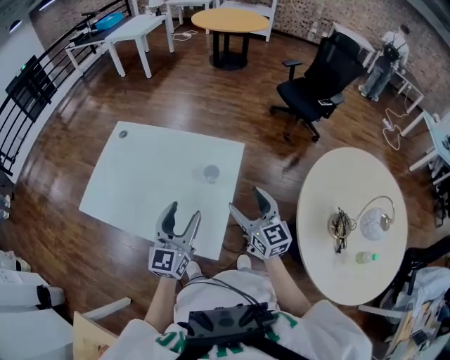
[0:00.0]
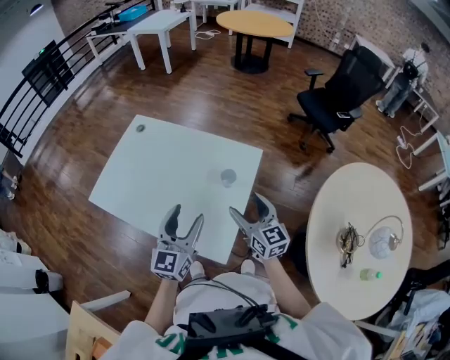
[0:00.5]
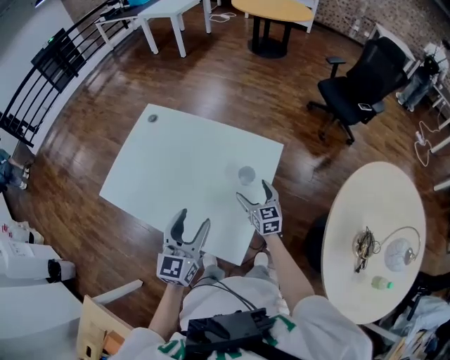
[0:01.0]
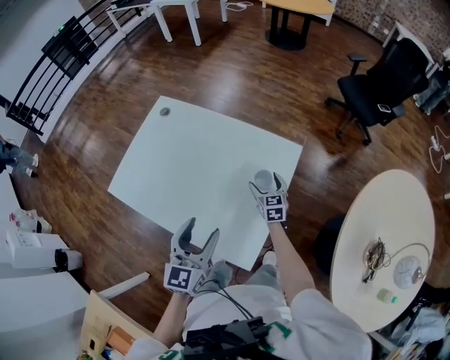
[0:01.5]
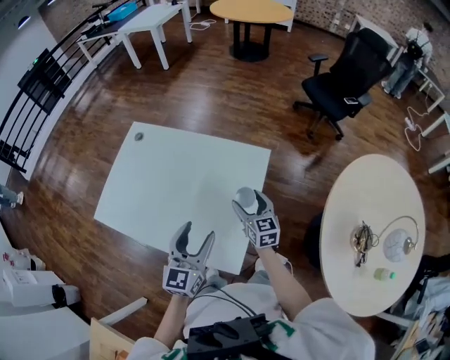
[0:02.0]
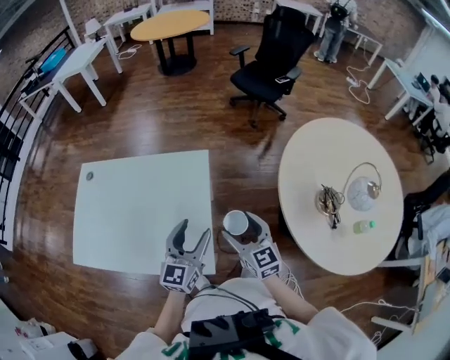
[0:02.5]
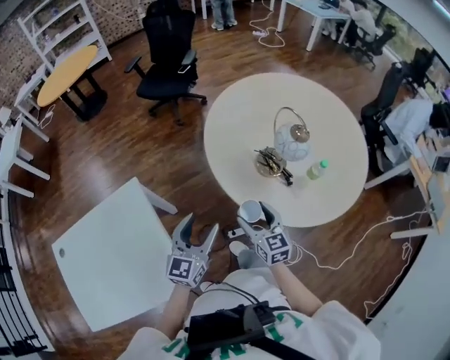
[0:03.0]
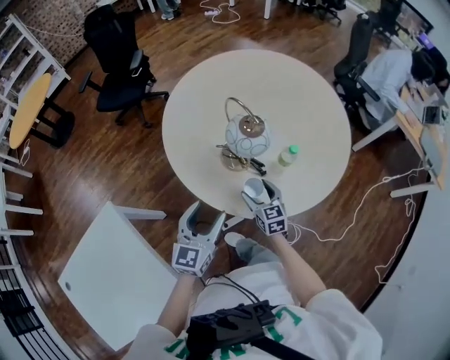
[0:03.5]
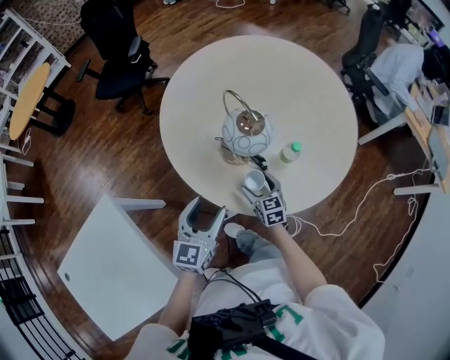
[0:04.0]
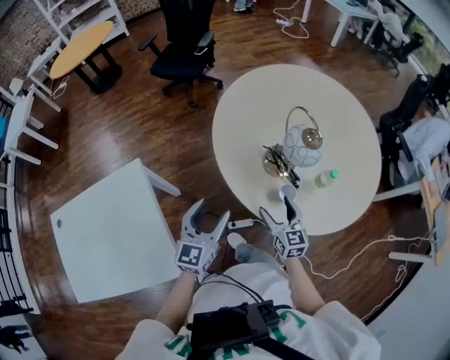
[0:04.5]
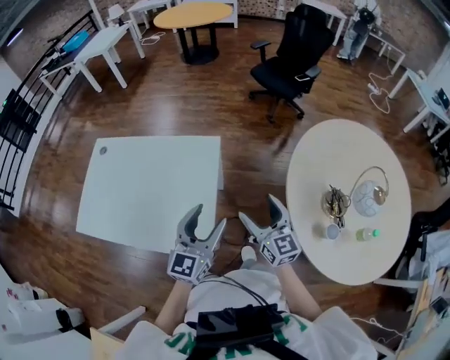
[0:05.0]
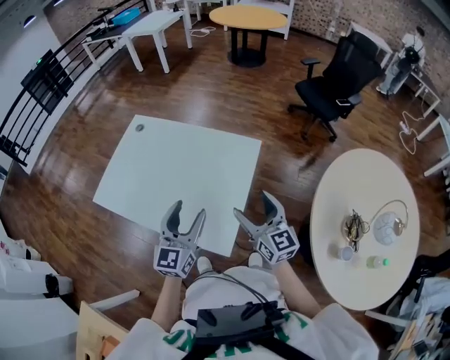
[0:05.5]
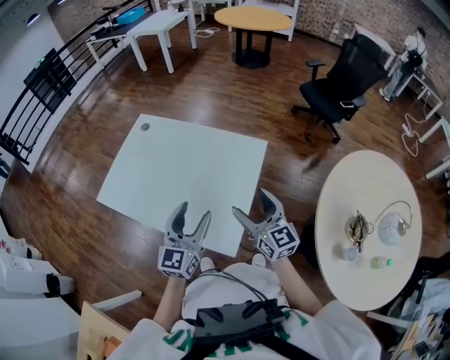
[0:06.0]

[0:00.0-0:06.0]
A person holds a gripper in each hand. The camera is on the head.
0:00.0 to 0:02.0: The right gripper goes approximately 20 cm downward, forward and to the left, while the left gripper changes place by roughly 5 cm.
0:02.0 to 0:04.0: Both grippers are carried about 60 cm. The right gripper turns by about 60 degrees. Meanwhile the left gripper swivels about 60 degrees.
0:04.0 to 0:06.0: The pair of grippers is taken roughly 60 cm. The left gripper rotates roughly 70 degrees. The right gripper rotates about 70 degrees.

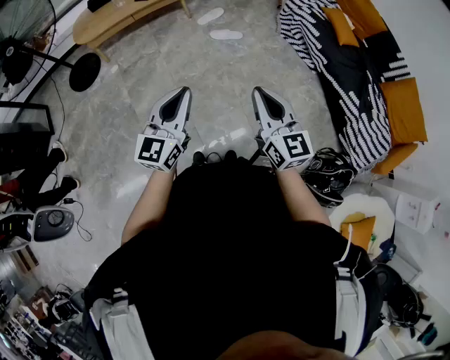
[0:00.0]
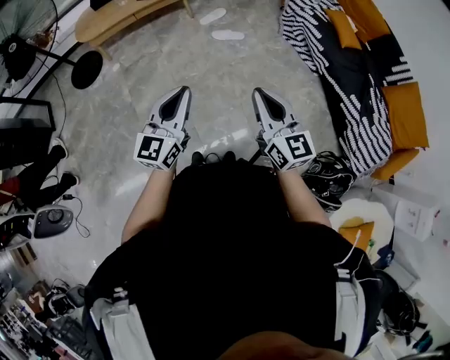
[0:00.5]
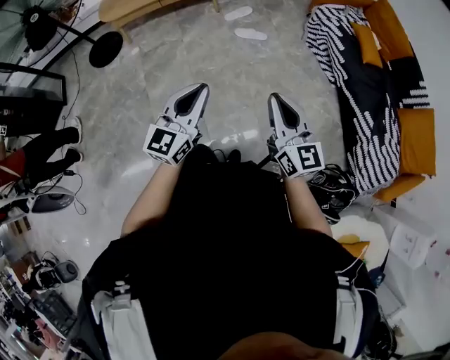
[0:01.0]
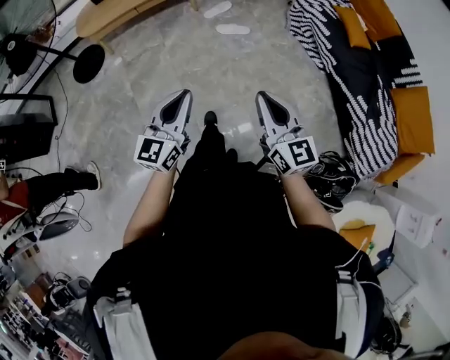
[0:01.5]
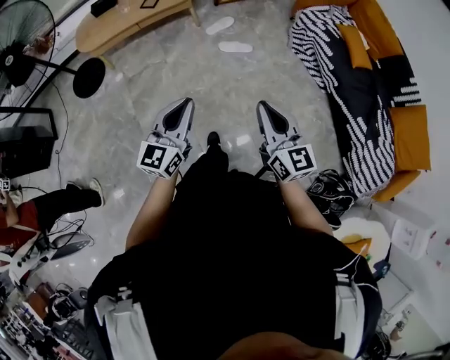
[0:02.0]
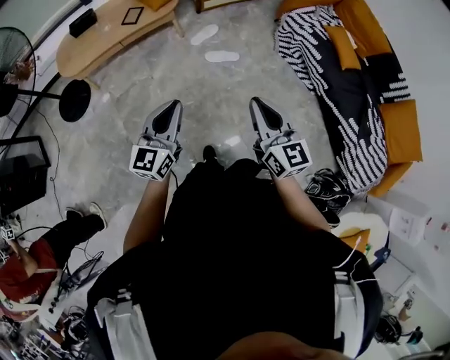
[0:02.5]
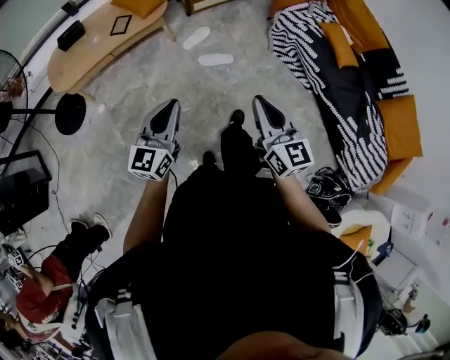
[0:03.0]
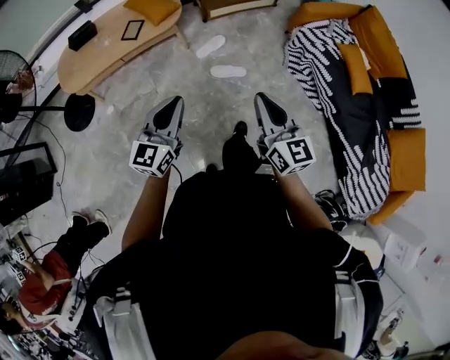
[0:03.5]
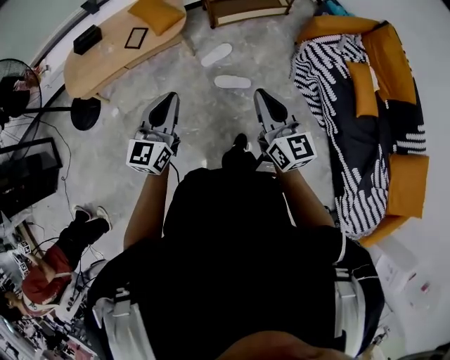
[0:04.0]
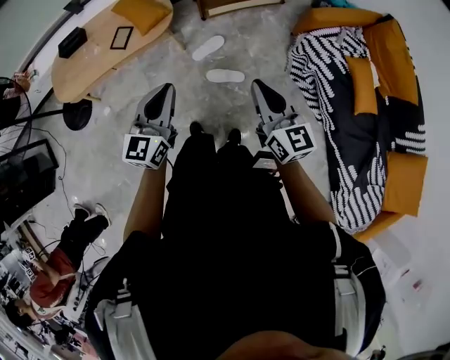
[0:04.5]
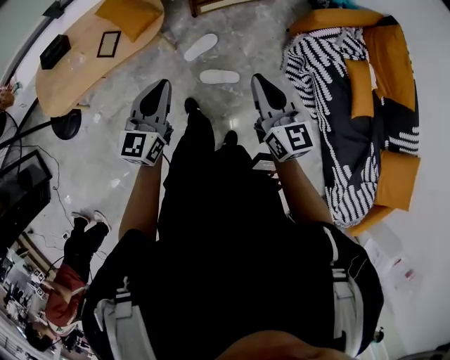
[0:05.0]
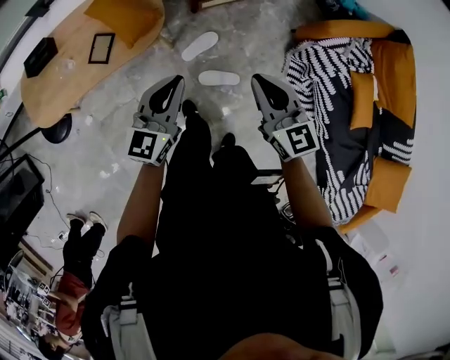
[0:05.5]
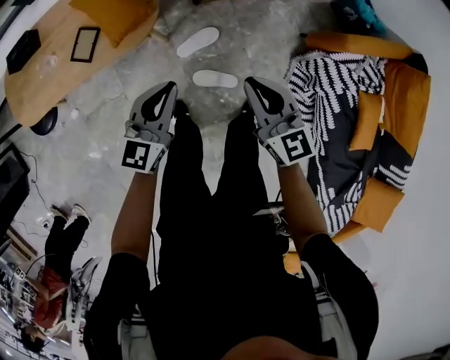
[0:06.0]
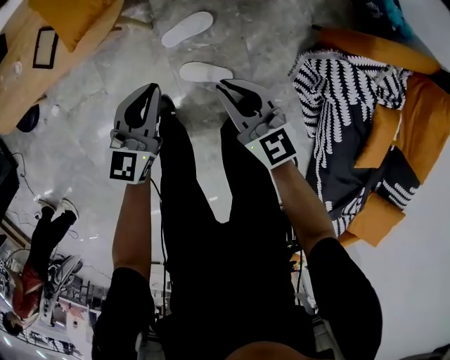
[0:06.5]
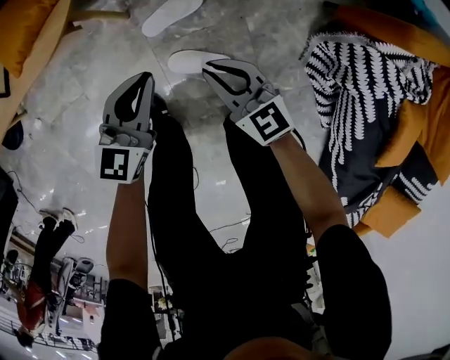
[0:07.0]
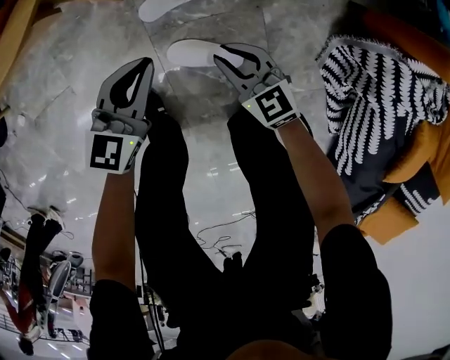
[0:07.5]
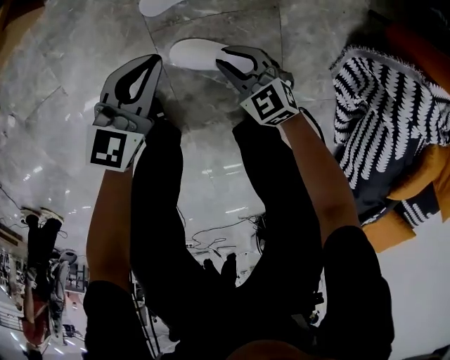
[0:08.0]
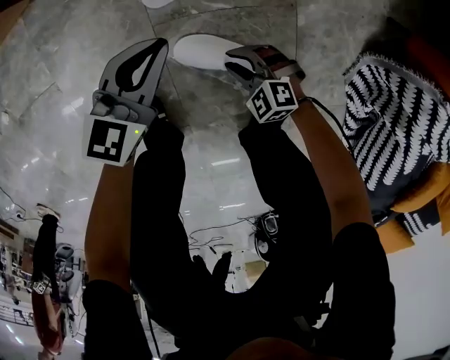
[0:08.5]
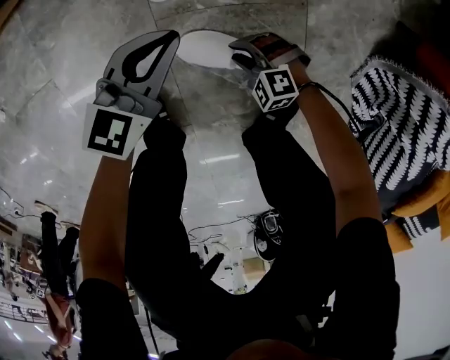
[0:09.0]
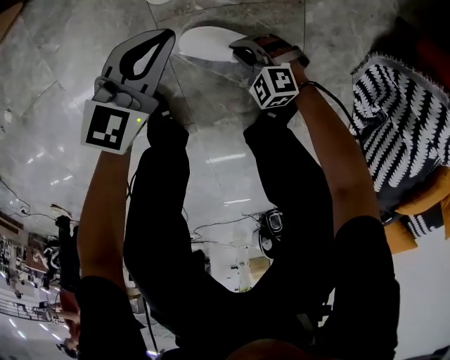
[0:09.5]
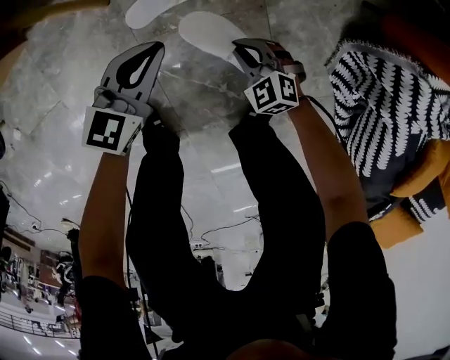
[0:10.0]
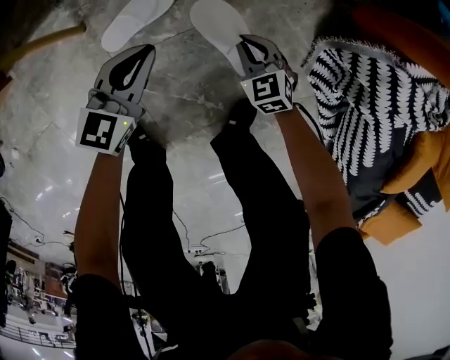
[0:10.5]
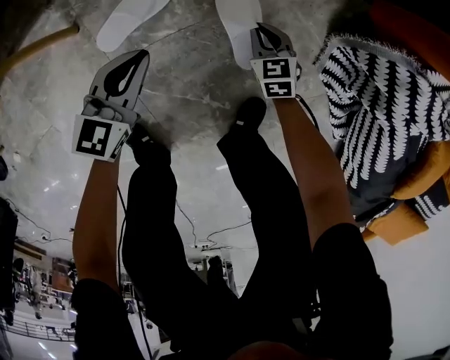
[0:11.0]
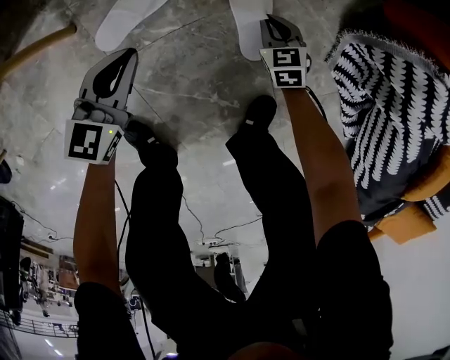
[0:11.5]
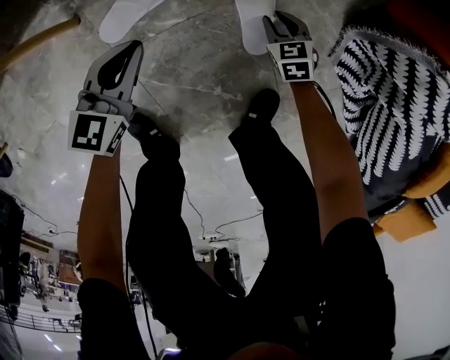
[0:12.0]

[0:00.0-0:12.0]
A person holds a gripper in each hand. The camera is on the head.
0:00.0 to 0:02.0: Both grippers travel together forward, some 10 cm.
0:02.0 to 0:04.0: Both grippers travel together forward, about 40 cm.
0:04.0 to 0:06.0: The two grippers go about 40 cm forward and downward.
0:06.0 to 0:08.0: Both grippers move downward, about 50 cm. The right gripper changes its angle by roughly 40 degrees.
0:08.0 to 0:10.0: The left gripper ends up some 5 cm from where it was. Meanwhile the right gripper travels downward and back again, roughly 15 cm each way.
0:10.0 to 0:12.0: The left gripper travels downward by approximately 5 cm; the right gripper shifts roughly 20 cm to the right, downward and forward, turns by approximately 40 degrees, and opens up.

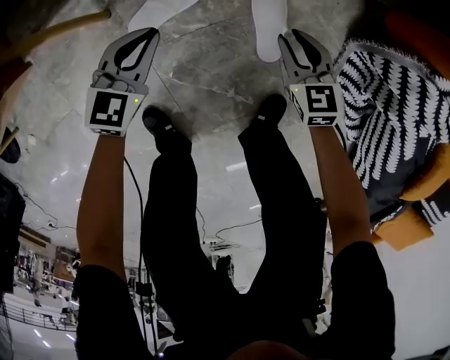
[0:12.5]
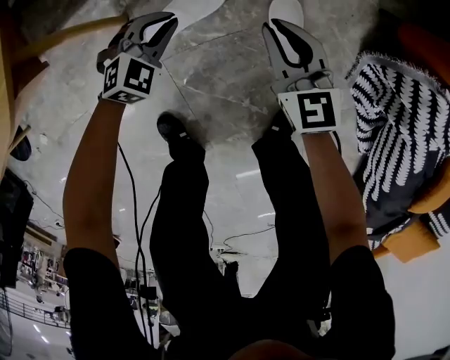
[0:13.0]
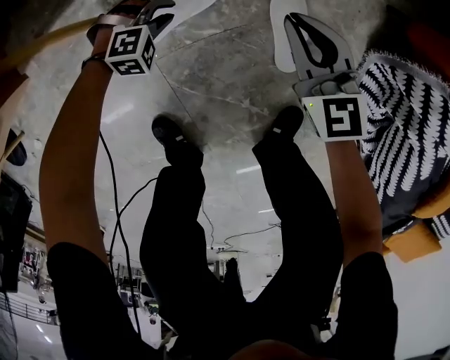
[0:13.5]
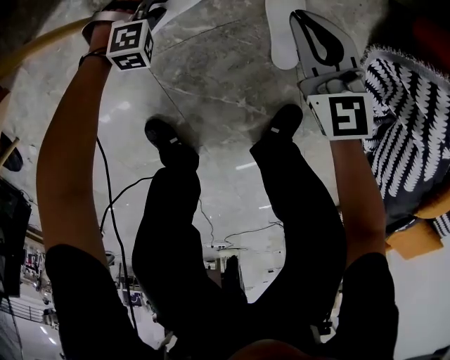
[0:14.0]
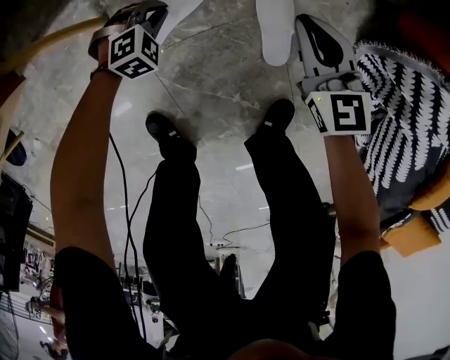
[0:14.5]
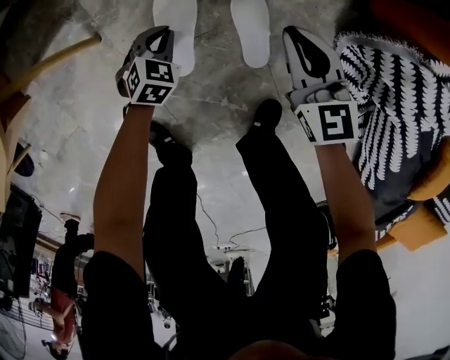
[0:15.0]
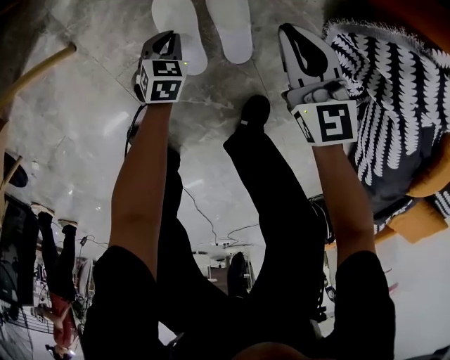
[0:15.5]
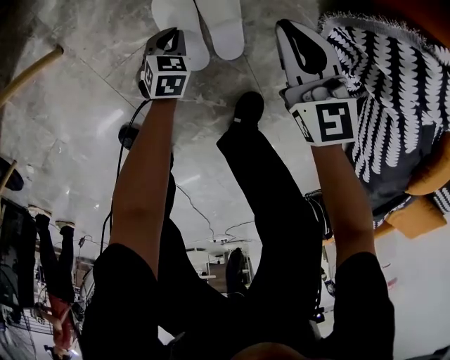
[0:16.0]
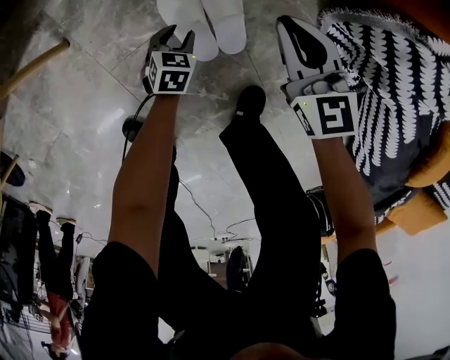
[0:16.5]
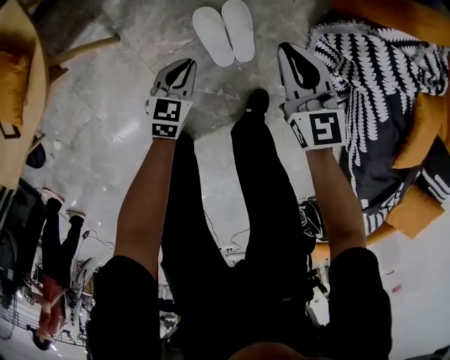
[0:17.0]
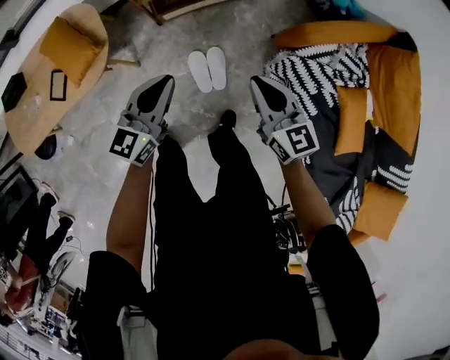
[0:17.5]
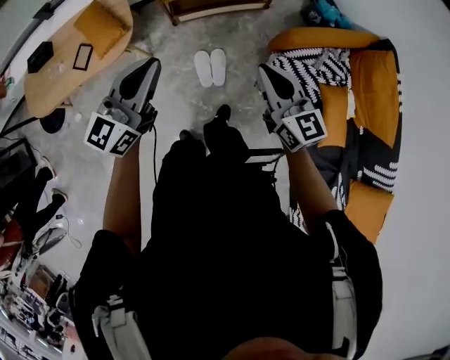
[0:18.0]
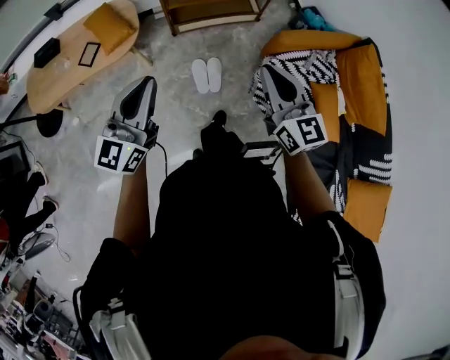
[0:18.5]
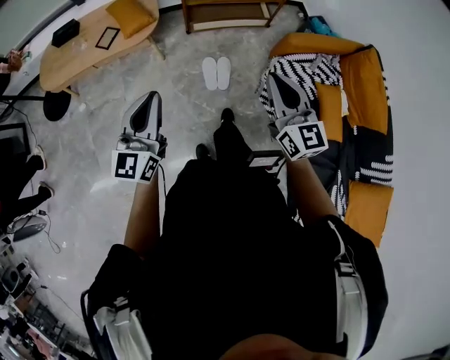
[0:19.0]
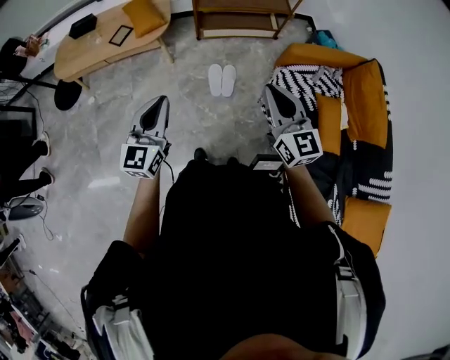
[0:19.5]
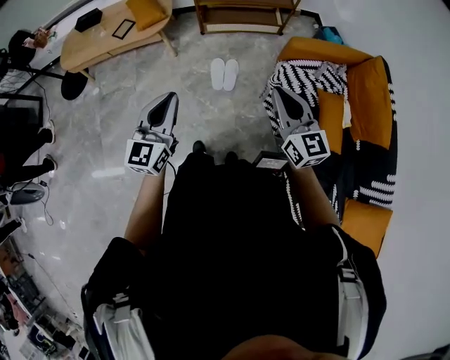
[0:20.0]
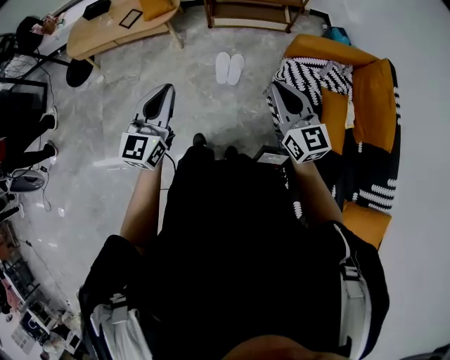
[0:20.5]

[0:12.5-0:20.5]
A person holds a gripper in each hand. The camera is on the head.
0:12.5 to 0:14.5: The left gripper shifts about 15 cm downward, rotates around the line of its fingers by approximately 40 degrees, clockwise from behind, and opens and closes again, while the right gripper is displaced upward by roughly 5 cm, and travels to the left and back again, some 10 cm each way.
0:14.5 to 0:16.5: The right gripper heads to the right, covering about 10 cm. The left gripper shifts approximately 15 cm to the right and backward, rotates around the line of its fingers by about 50 degrees, counterclockwise from behind, and opens up.
0:16.5 to 0:18.5: The grippers both shift upward by roughly 80 cm. The left gripper tilts its fingers roughly 70 degrees upward, and closes its fingers. The right gripper rotates approximately 30 degrees.
0:18.5 to 0:20.5: Both grippers travel together backward, approximately 20 cm. The left gripper swivels approximately 20 degrees.
